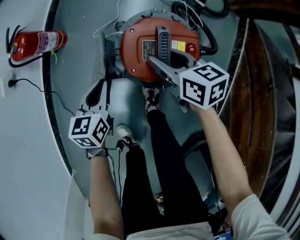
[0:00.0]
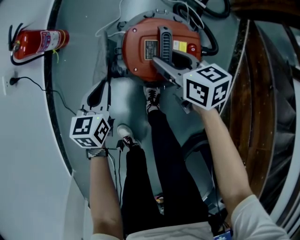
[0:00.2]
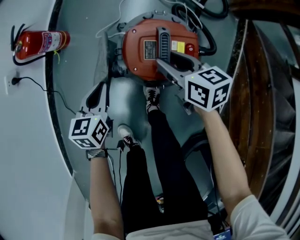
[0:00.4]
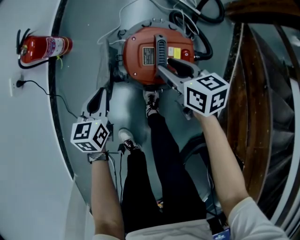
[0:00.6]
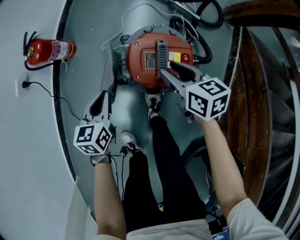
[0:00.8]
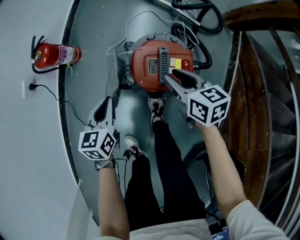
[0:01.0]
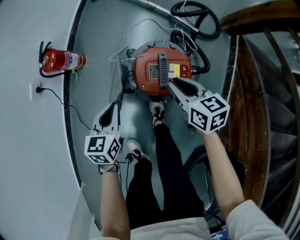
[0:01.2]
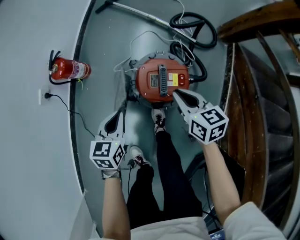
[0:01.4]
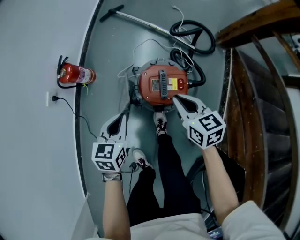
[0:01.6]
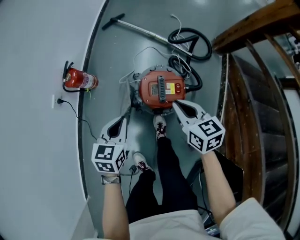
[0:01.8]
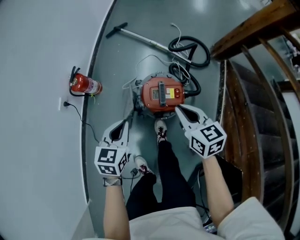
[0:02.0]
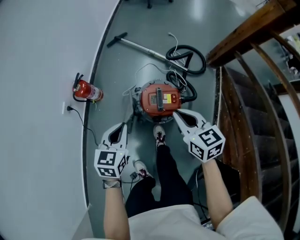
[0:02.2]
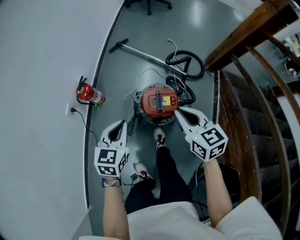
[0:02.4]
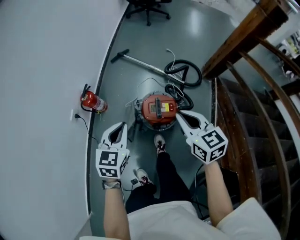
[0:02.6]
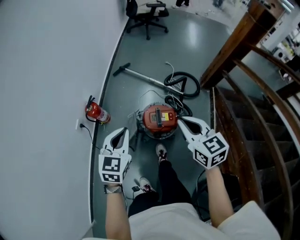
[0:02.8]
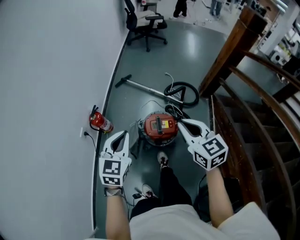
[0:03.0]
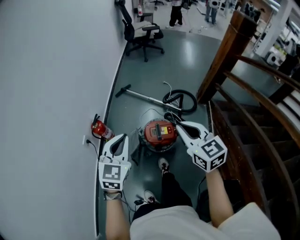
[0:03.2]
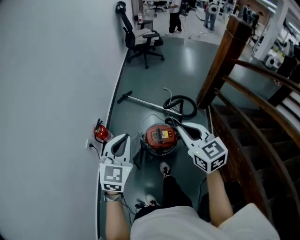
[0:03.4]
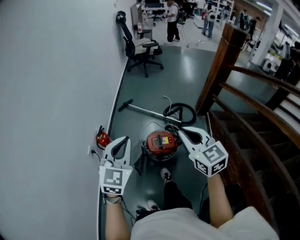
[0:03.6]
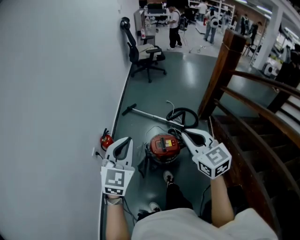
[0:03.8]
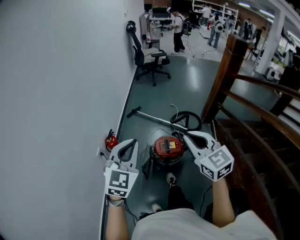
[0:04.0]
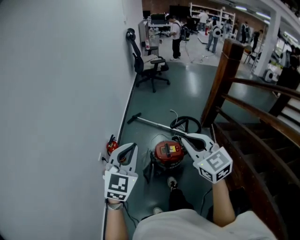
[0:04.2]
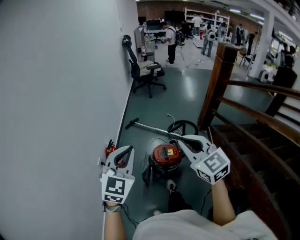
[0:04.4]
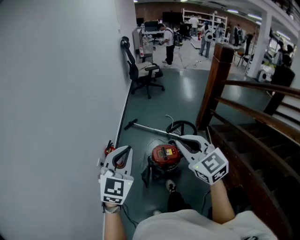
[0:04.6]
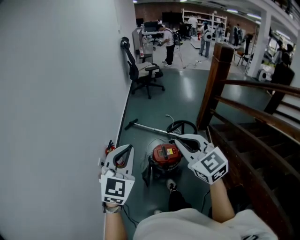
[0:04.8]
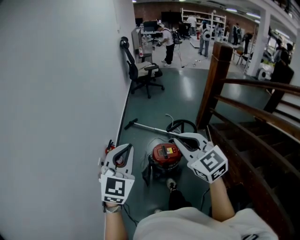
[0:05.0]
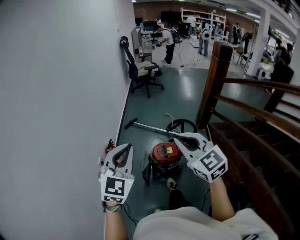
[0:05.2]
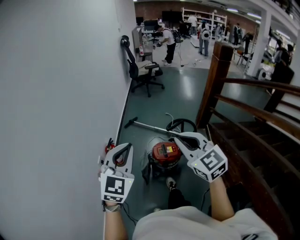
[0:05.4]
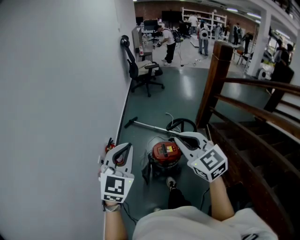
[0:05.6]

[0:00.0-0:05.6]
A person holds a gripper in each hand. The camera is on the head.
0:00.0 to 0:01.4: Both grippers travel together upward, some 15 cm. The right gripper closes up.
0:01.4 to 0:02.8: Both grippers move upward, some 35 cm. The left gripper swivels some 30 degrees, while the right gripper changes its angle by roughly 20 degrees.
0:02.8 to 0:04.2: The grippers both shift upward and backward by roughly 25 cm. The right gripper turns by approximately 20 degrees; the left gripper changes its angle by roughly 30 degrees.
0:04.2 to 0:05.6: The right gripper ends up approximately 5 cm from where it was, while the left gripper ends up some 5 cm from where it was.

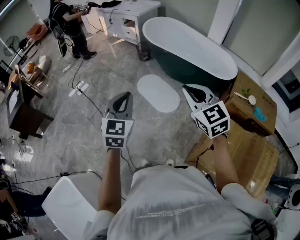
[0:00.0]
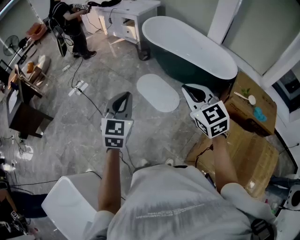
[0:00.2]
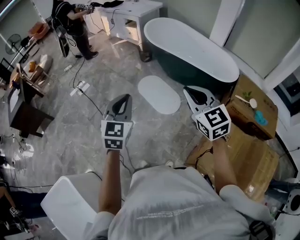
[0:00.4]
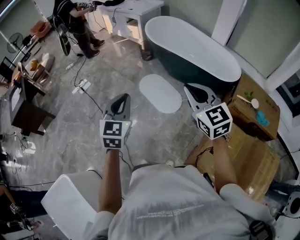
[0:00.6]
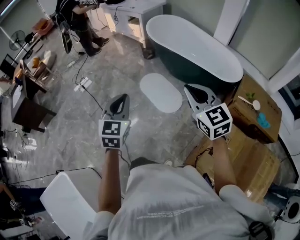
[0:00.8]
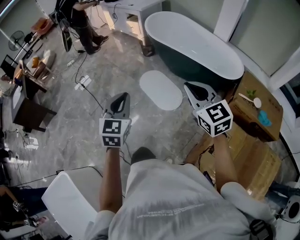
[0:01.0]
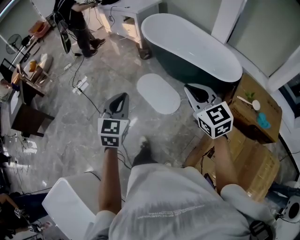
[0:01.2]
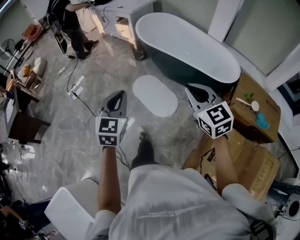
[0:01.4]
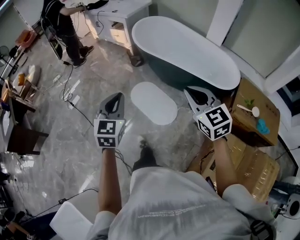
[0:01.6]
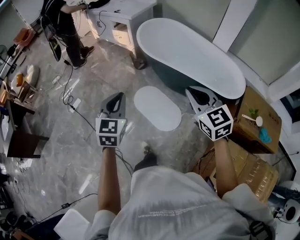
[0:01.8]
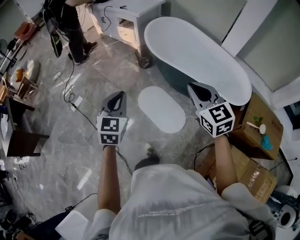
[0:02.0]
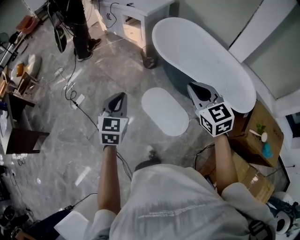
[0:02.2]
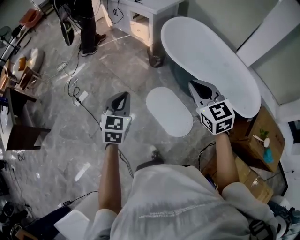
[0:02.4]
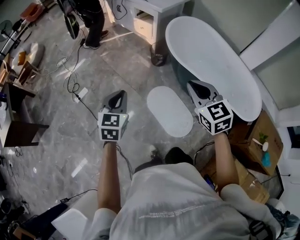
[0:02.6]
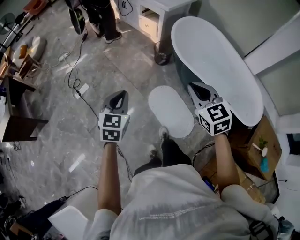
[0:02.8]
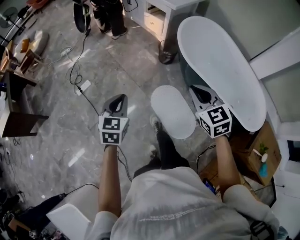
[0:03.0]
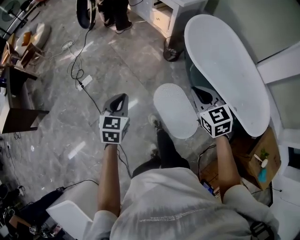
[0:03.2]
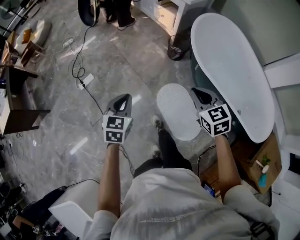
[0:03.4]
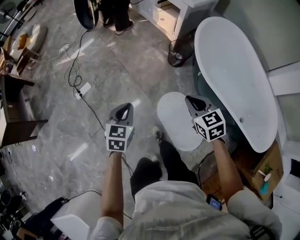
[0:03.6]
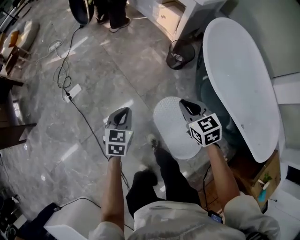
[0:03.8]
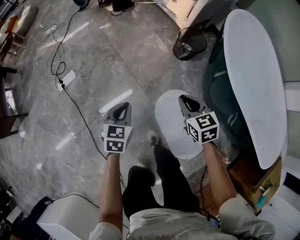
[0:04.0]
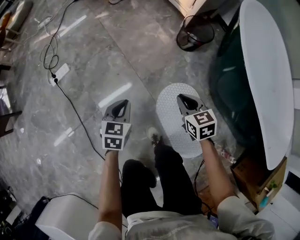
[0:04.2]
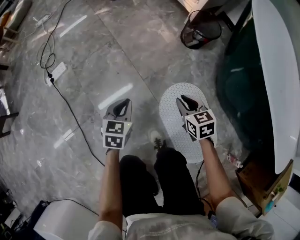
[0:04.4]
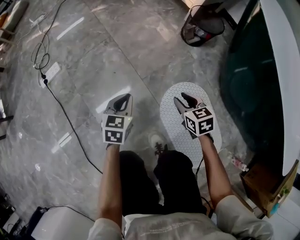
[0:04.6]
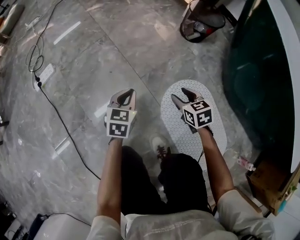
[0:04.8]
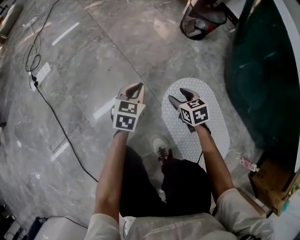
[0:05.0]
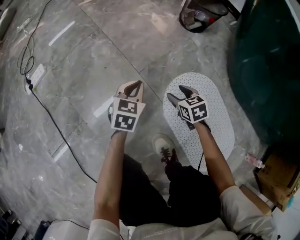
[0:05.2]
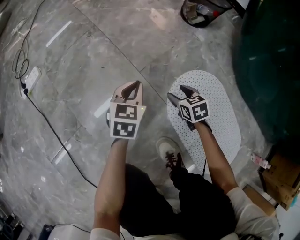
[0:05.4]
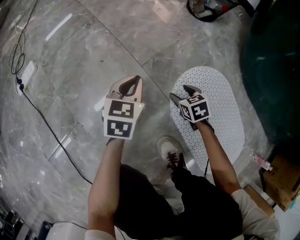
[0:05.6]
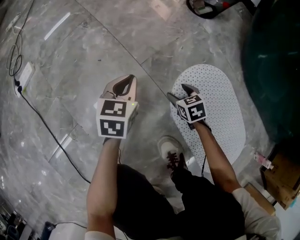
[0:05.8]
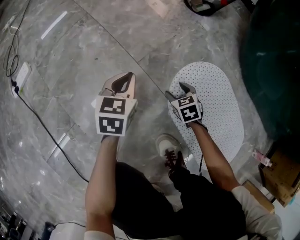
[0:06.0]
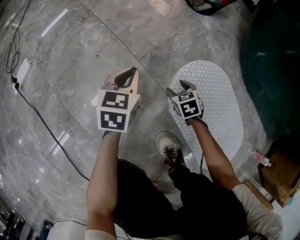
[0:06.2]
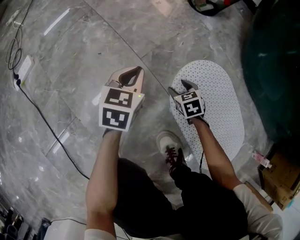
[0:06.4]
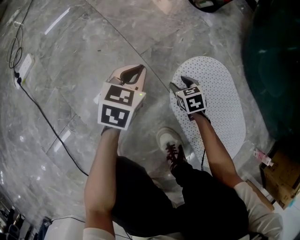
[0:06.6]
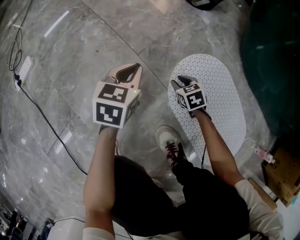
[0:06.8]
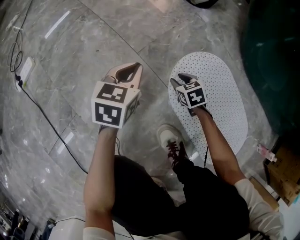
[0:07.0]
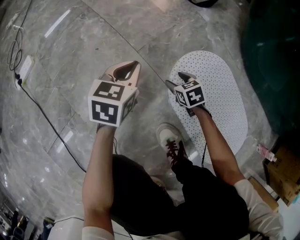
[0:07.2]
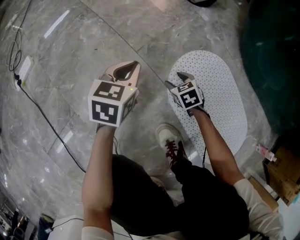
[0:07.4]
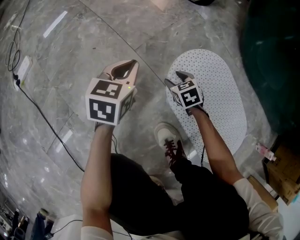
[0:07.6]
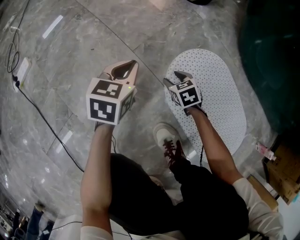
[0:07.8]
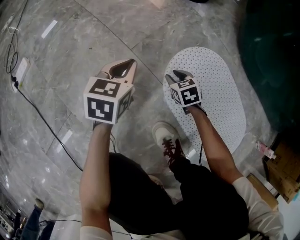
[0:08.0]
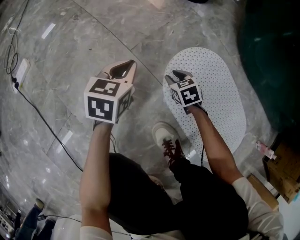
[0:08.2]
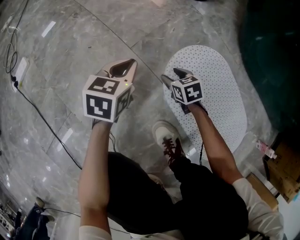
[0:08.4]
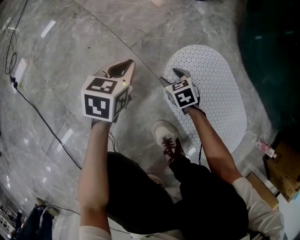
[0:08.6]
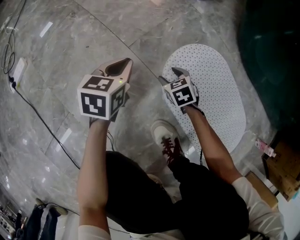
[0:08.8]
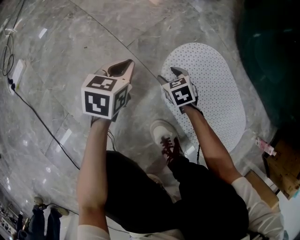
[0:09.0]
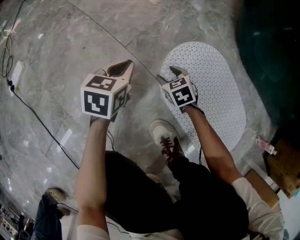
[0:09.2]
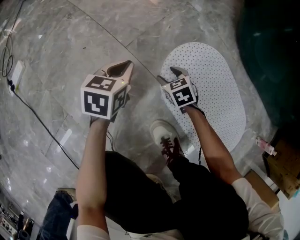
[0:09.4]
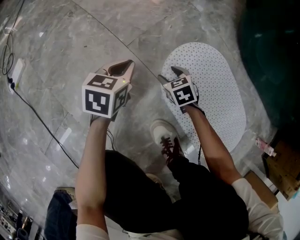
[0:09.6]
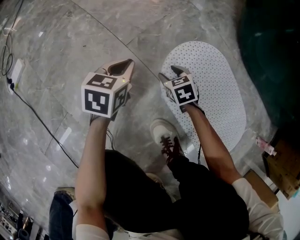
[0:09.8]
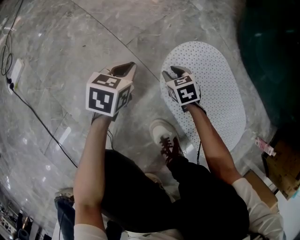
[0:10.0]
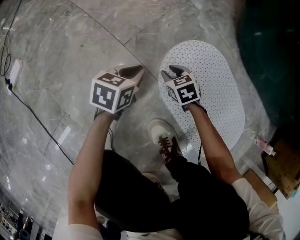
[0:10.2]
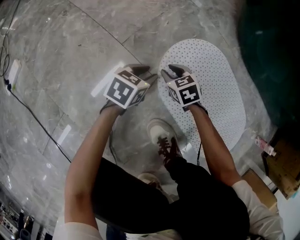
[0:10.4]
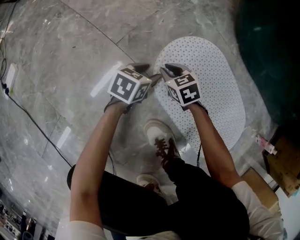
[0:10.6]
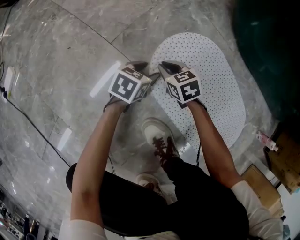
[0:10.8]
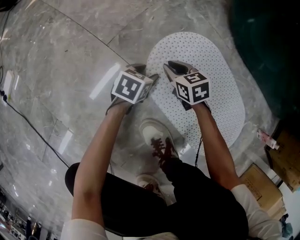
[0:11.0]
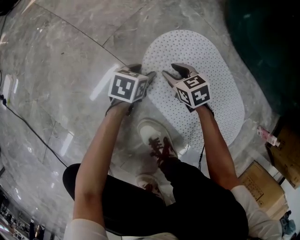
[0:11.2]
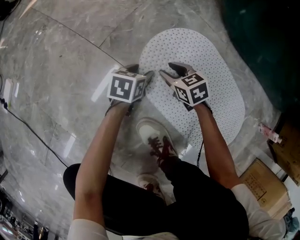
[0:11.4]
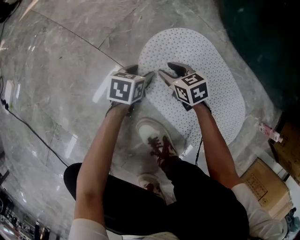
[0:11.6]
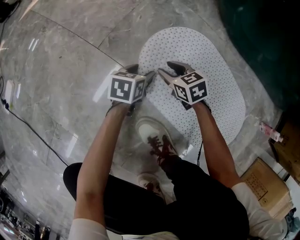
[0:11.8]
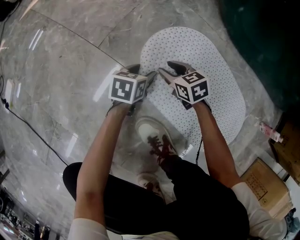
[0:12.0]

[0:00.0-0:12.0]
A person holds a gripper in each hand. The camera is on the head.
0:00.0 to 0:01.6: The right gripper heads forward and to the right, covering some 25 cm; the left gripper heads forward, covering about 25 cm.
0:01.6 to 0:03.0: Both grippers travel together forward and to the left, roughly 40 cm.
0:03.0 to 0:04.4: The grippers both shift downward by some 60 cm. The right gripper changes its angle by some 30 degrees.
0:04.4 to 0:06.0: The right gripper goes about 35 cm downward, and opens. The left gripper goes approximately 25 cm downward.
0:06.0 to 0:07.6: The right gripper closes, then opens again.
0:07.6 to 0:09.0: There are only small adjustments of the grippers.
0:09.0 to 0:10.4: The right gripper closes, while the left gripper heads to the right and downward, covering about 10 cm, changes its angle by roughly 20 degrees, and opens its fingers.
0:10.4 to 0:12.0: Both grippers move to the right, roughly 5 cm. The left gripper opens.

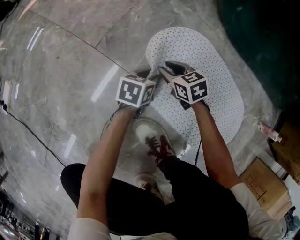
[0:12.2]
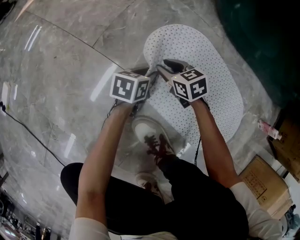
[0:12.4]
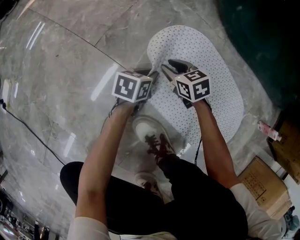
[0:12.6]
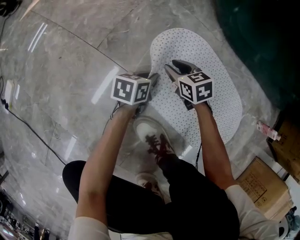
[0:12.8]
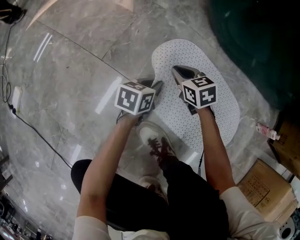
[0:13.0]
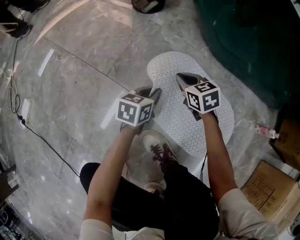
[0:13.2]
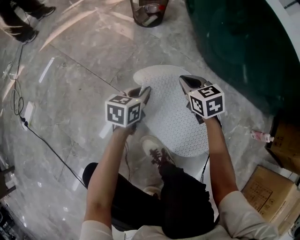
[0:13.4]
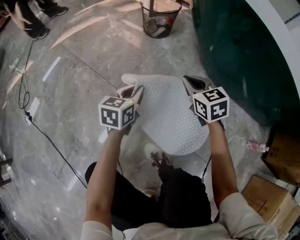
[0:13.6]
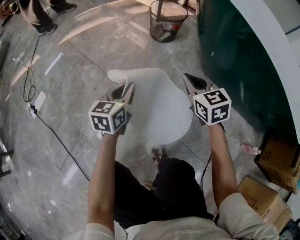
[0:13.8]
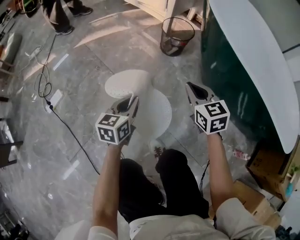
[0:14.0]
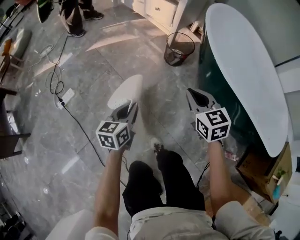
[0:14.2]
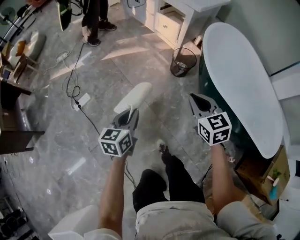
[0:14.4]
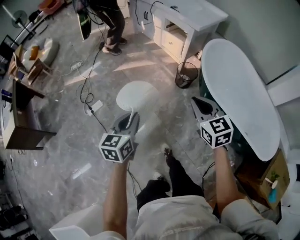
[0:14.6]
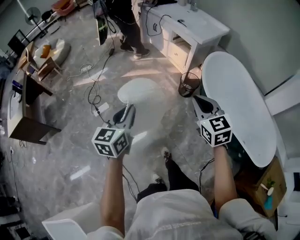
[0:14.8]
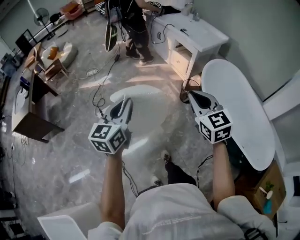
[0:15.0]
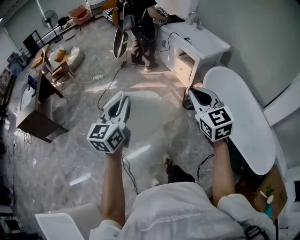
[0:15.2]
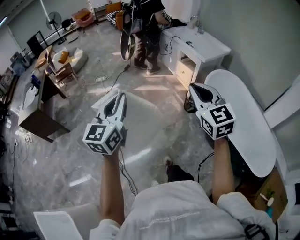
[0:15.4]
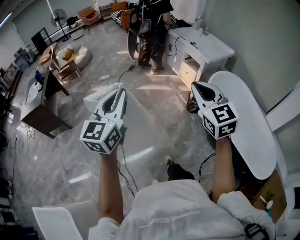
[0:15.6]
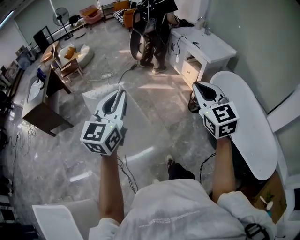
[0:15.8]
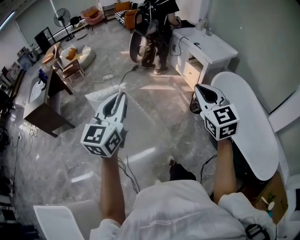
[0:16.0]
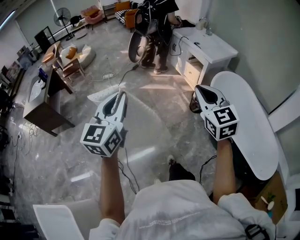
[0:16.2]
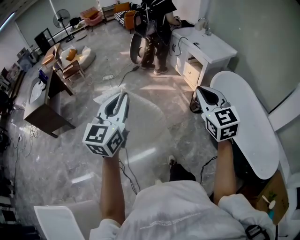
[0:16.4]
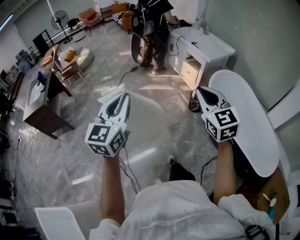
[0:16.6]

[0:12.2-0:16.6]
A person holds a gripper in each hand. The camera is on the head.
0:12.2 to 0:13.6: The grippers both shift upward by some 25 cm. The right gripper turns by about 20 degrees, and closes, while the left gripper rotates approximately 30 degrees, and closes.
0:13.6 to 0:15.2: Both grippers move upward, roughly 90 cm. The left gripper rotates roughly 50 degrees; the right gripper turns by some 40 degrees.
0:15.2 to 0:16.6: The right gripper moves some 5 cm. The left gripper moves backward and upward, about 10 cm.

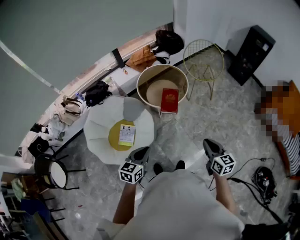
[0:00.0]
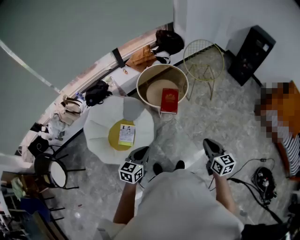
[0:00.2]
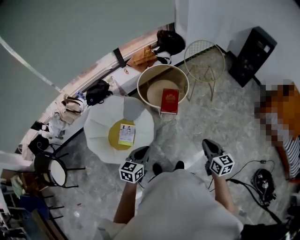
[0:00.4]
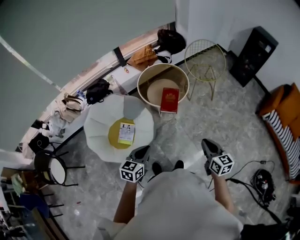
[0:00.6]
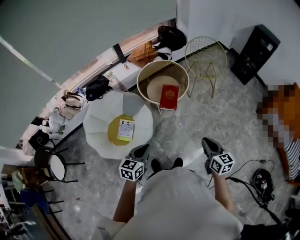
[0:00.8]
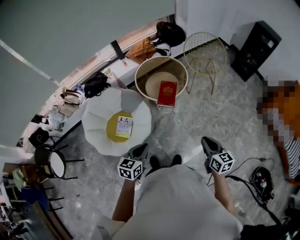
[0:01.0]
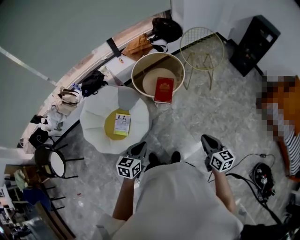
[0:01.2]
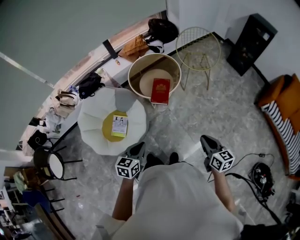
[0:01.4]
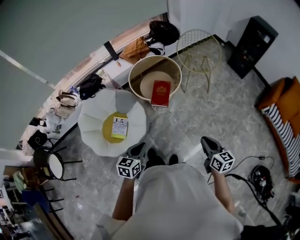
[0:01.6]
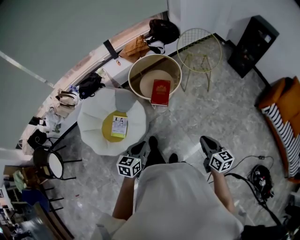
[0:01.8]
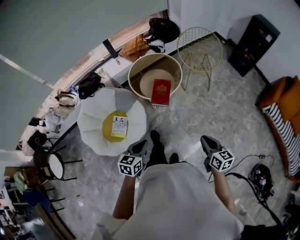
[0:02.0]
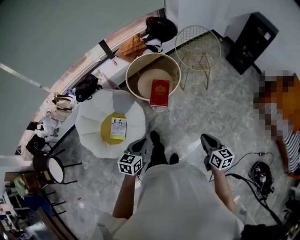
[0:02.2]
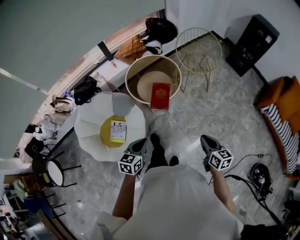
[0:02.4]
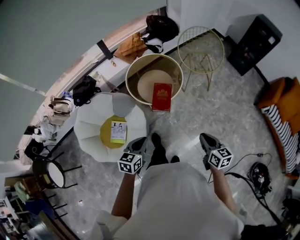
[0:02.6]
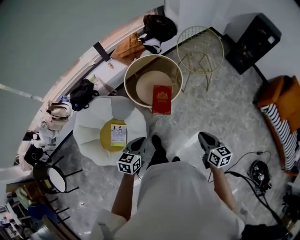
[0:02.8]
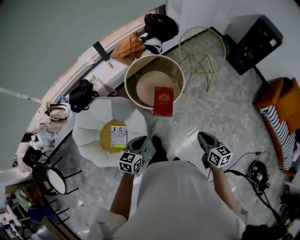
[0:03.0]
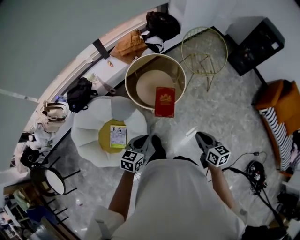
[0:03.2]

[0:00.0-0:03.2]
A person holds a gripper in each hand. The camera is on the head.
0:00.0 to 0:01.6: The grippers both shift to the right by about 10 cm.
0:01.6 to 0:03.2: The two grippers go some 25 cm forward and to the left.
